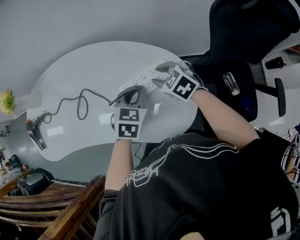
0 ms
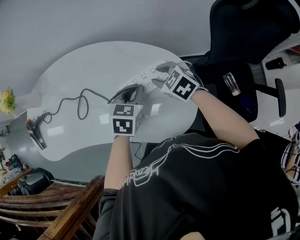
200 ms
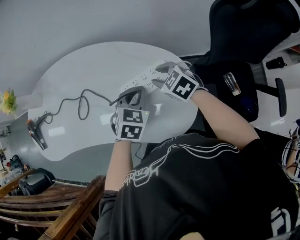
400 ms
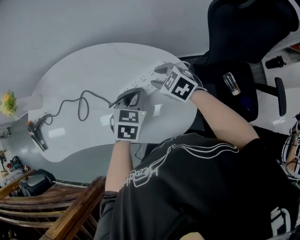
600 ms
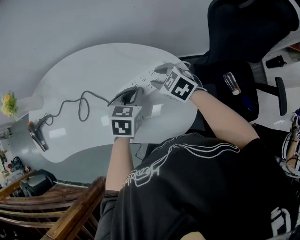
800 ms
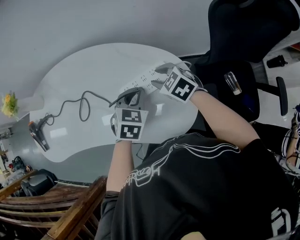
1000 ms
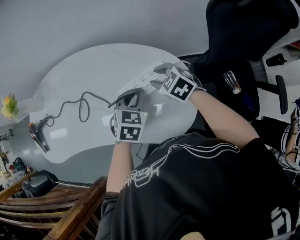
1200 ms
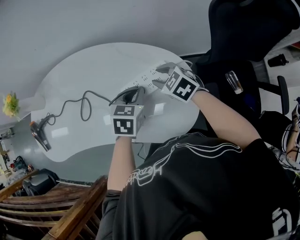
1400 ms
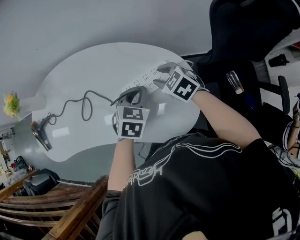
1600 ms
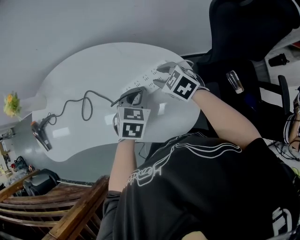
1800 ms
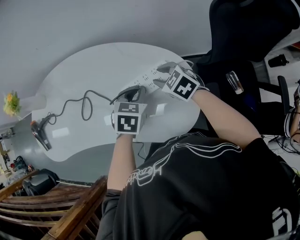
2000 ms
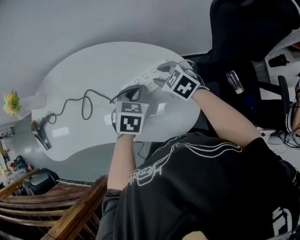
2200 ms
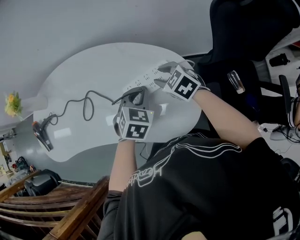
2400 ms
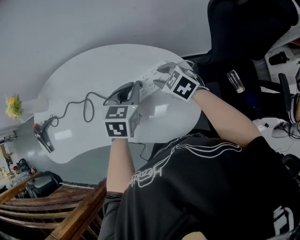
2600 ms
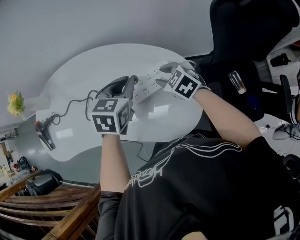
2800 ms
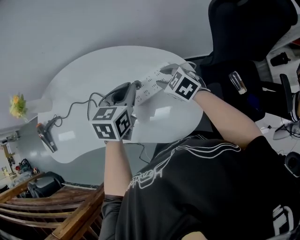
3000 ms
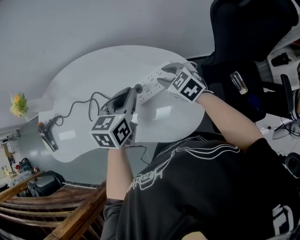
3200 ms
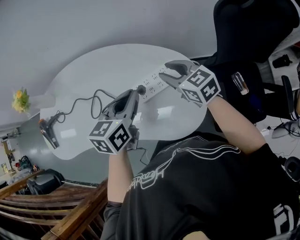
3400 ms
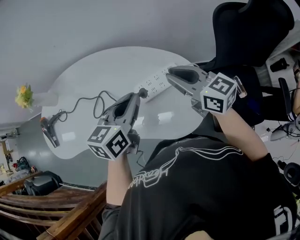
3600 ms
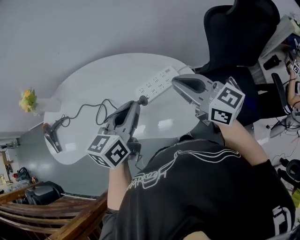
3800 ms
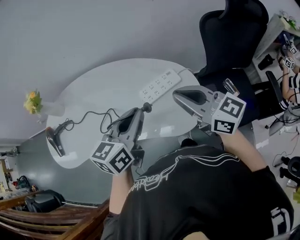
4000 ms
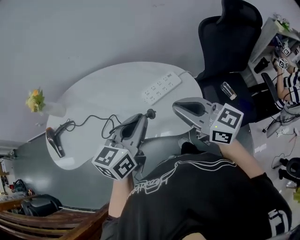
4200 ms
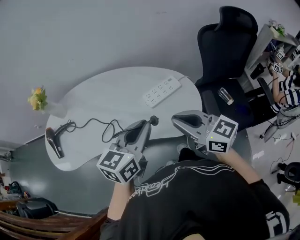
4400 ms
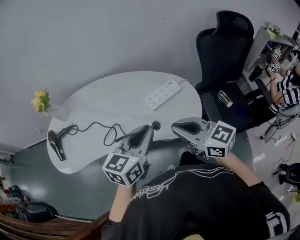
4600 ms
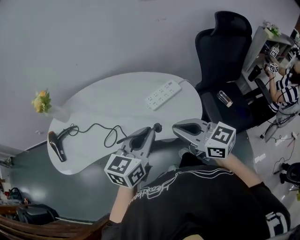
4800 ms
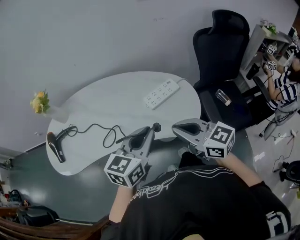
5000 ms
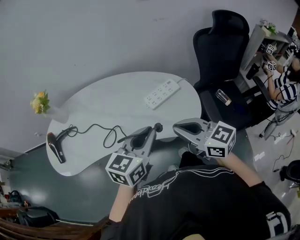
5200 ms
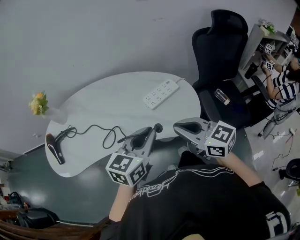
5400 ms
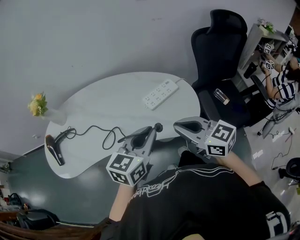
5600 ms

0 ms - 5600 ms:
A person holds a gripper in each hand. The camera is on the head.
0 ms - 1400 ms: The grippers stay close to where they were, moving slightly.
1400 ms - 2800 ms: The left gripper heads upward, covering approximately 5 cm.
2800 ms - 4200 ms: The right gripper goes some 35 cm upward and backward, points its fingers roughly 40 degrees further upward, and closes its fingers, while the left gripper goes roughly 25 cm backward, upward and to the left, and changes its angle by some 30 degrees.
4200 ms - 5600 ms: Both grippers move backward, some 5 cm.

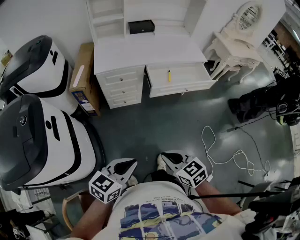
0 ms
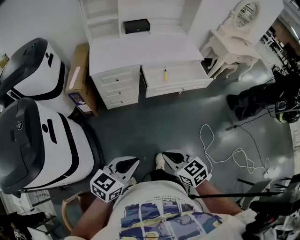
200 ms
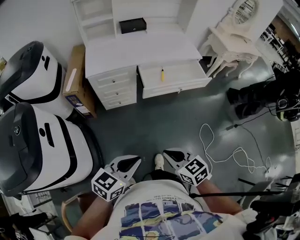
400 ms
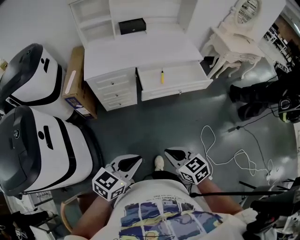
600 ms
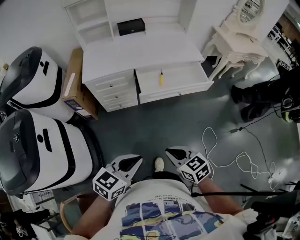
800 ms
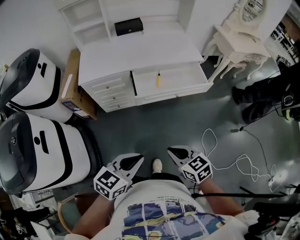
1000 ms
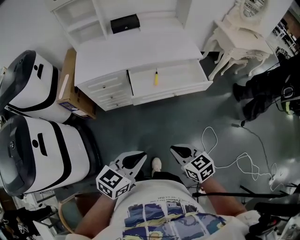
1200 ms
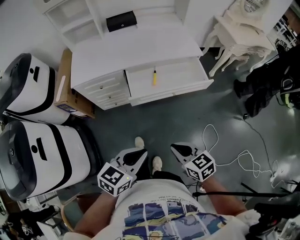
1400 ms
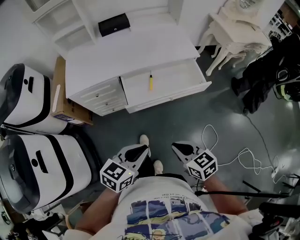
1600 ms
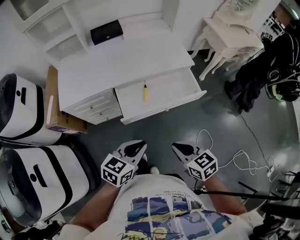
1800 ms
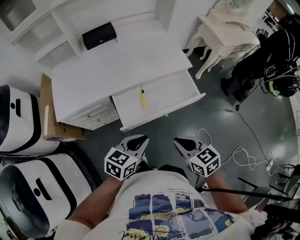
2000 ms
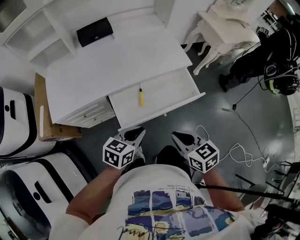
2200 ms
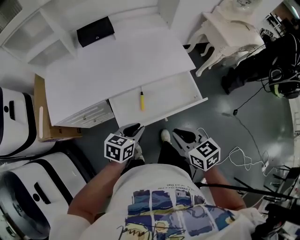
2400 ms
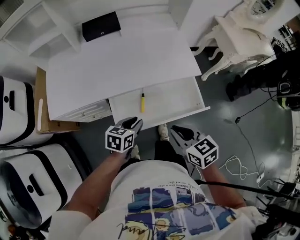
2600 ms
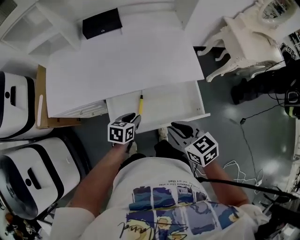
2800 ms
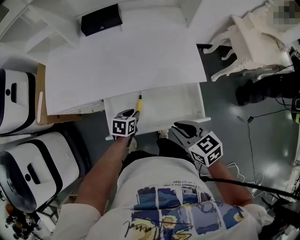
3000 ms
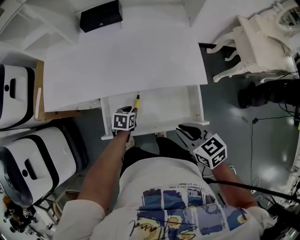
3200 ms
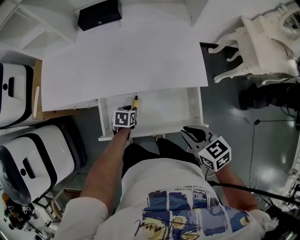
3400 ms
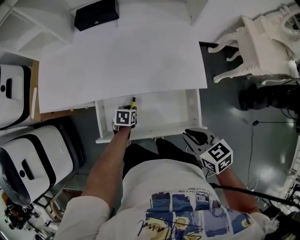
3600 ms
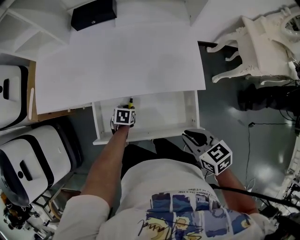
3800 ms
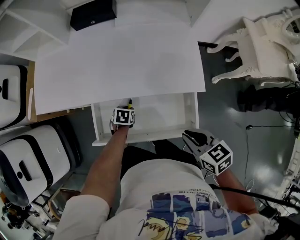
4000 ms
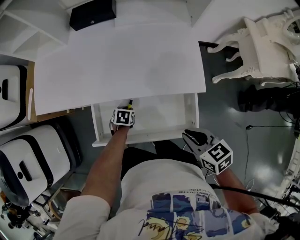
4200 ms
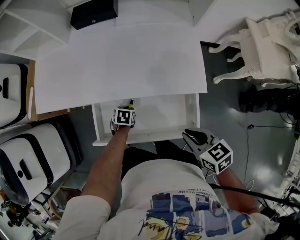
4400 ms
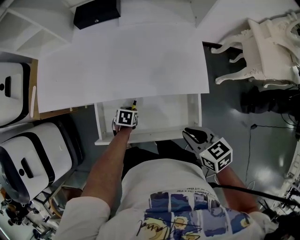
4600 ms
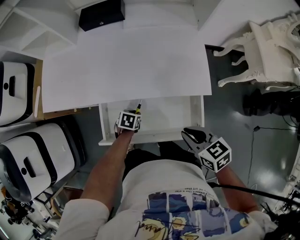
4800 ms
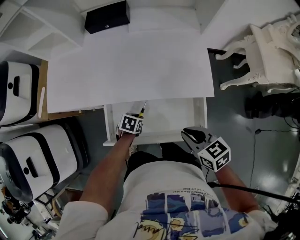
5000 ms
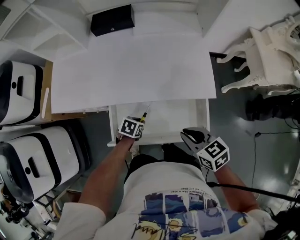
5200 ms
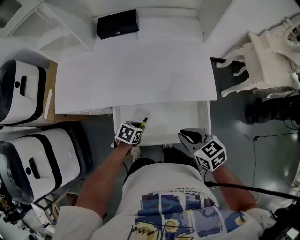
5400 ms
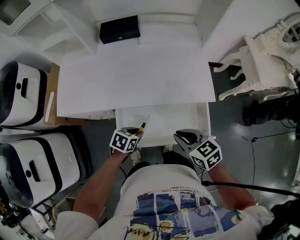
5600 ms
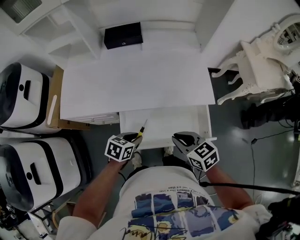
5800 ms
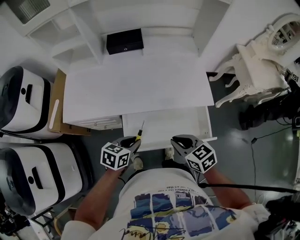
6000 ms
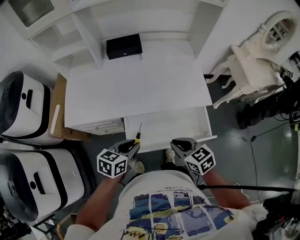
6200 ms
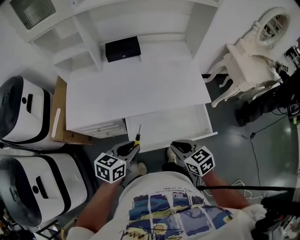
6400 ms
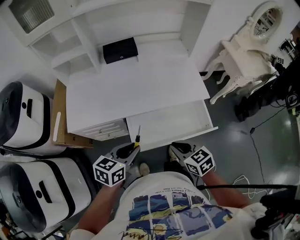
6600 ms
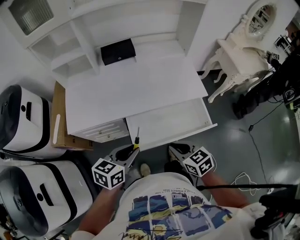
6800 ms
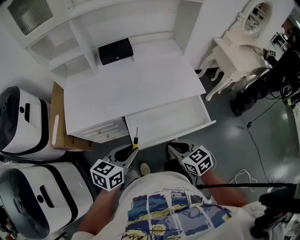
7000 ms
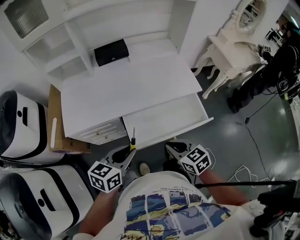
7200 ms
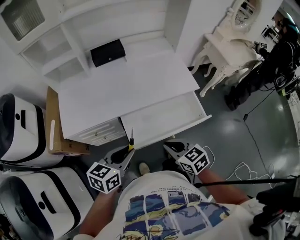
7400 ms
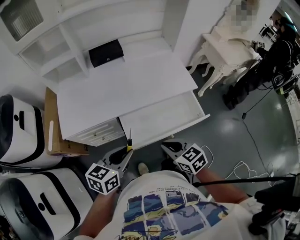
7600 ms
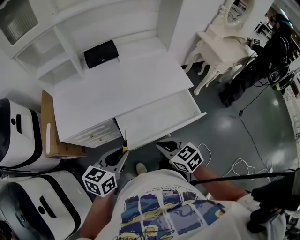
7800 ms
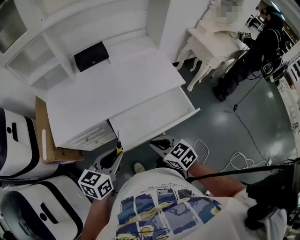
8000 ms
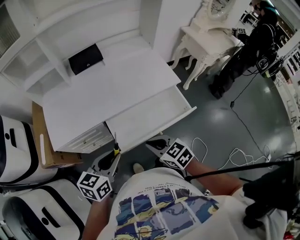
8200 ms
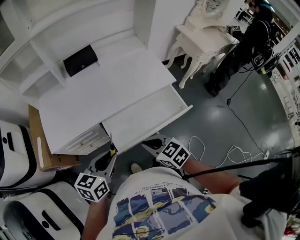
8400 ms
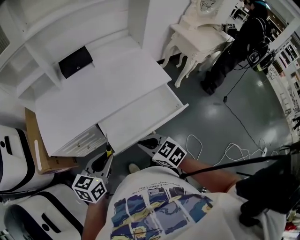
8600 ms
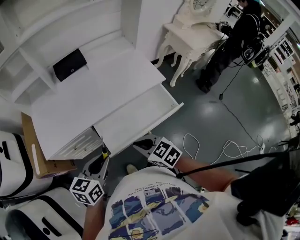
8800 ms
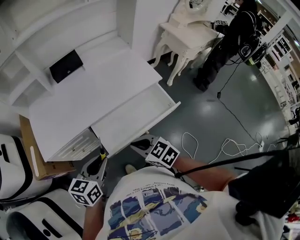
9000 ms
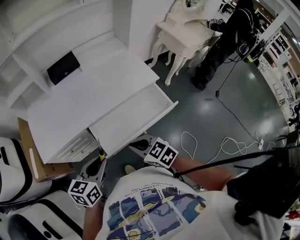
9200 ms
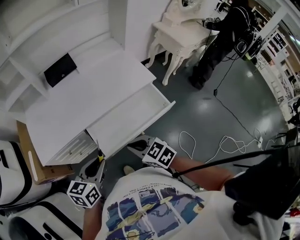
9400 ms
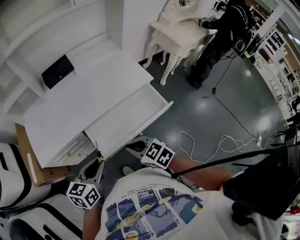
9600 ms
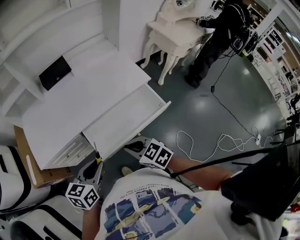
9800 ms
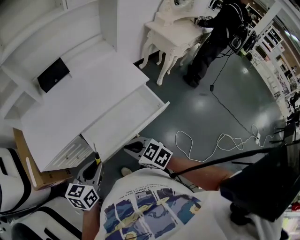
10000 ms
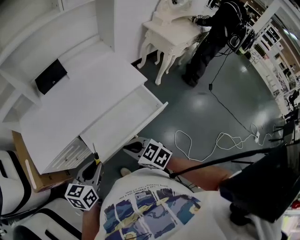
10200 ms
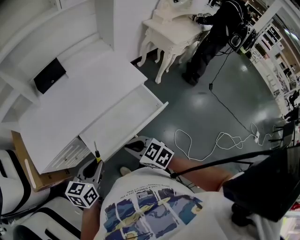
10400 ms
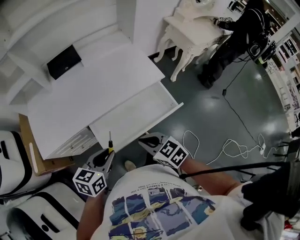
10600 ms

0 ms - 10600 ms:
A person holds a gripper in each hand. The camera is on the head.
0 ms - 1600 ms: Both grippers move forward and to the right, roughly 30 cm.
1600 ms - 3000 ms: The right gripper goes some 30 cm forward. Meanwhile the left gripper is displaced forward and downward by about 40 cm, swivels some 40 degrees, and opens its fingers.
3000 ms - 4600 ms: The left gripper heads downward, covering roughly 10 cm; the right gripper goes approximately 10 cm to the right.
4600 ms - 6000 ms: The left gripper goes about 25 cm upward, and angles its fingers upward, by about 30 degrees; the right gripper shifts by approximately 15 cm.
6000 ms - 7600 ms: The right gripper heads backward and to the left, covering some 10 cm. The left gripper is displaced upward, backward and to the left by roughly 15 cm.
7600 ms - 9000 ms: The grippers move only a little.
9000 ms - 10600 ms: The two grippers go about 10 cm to the right.

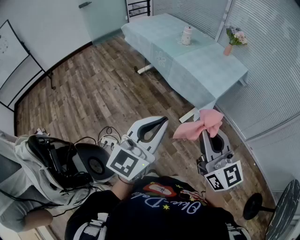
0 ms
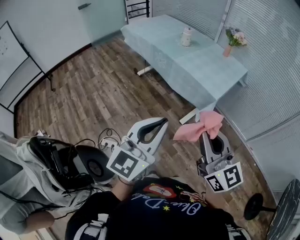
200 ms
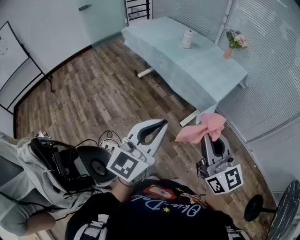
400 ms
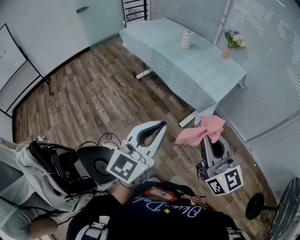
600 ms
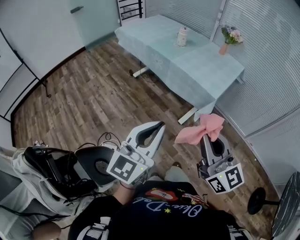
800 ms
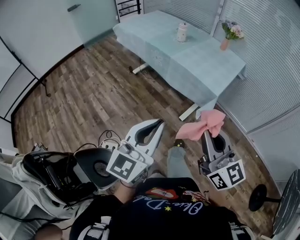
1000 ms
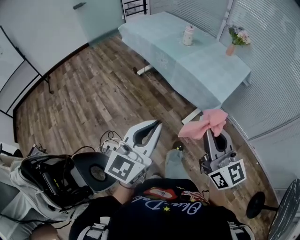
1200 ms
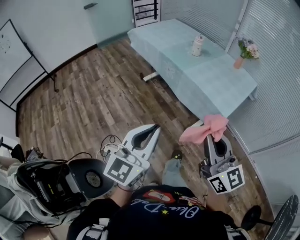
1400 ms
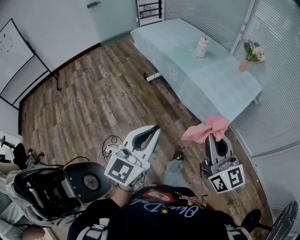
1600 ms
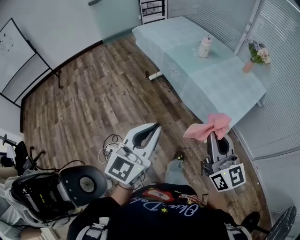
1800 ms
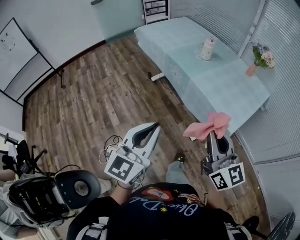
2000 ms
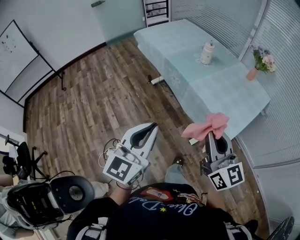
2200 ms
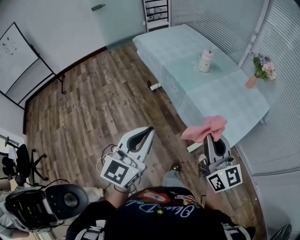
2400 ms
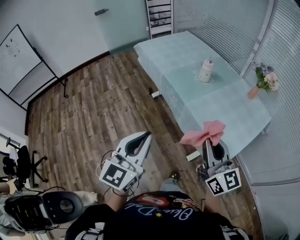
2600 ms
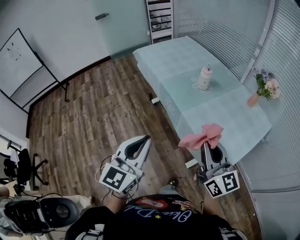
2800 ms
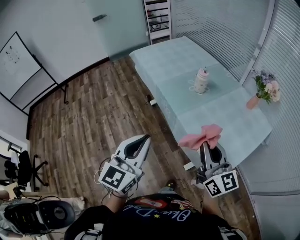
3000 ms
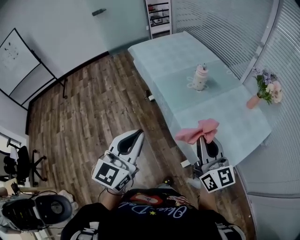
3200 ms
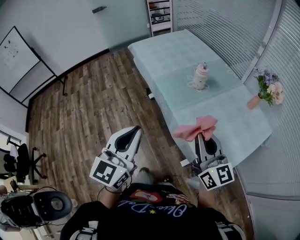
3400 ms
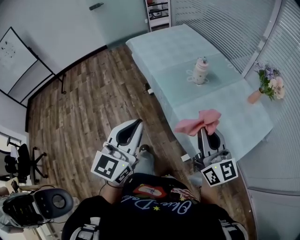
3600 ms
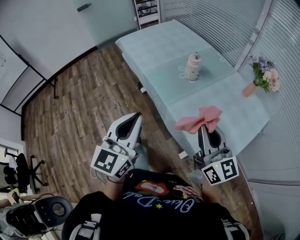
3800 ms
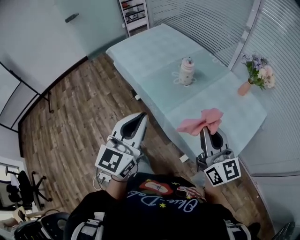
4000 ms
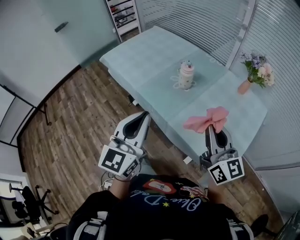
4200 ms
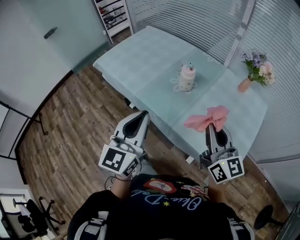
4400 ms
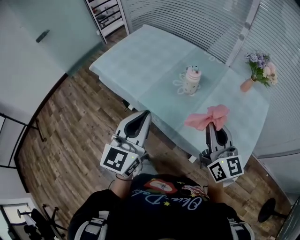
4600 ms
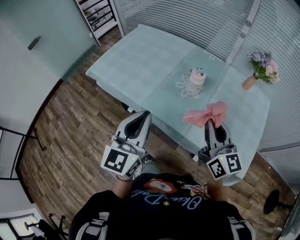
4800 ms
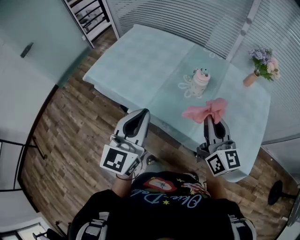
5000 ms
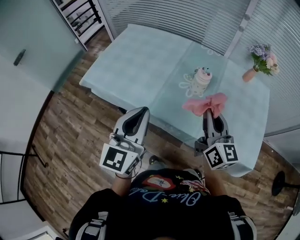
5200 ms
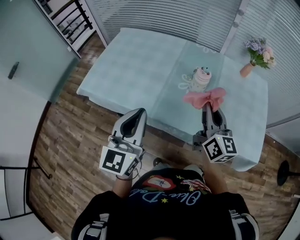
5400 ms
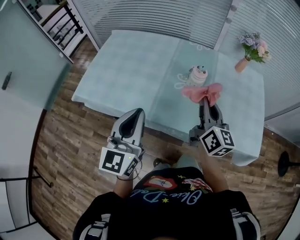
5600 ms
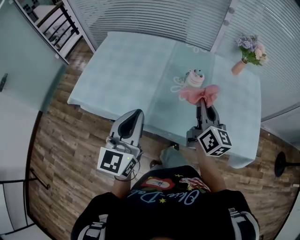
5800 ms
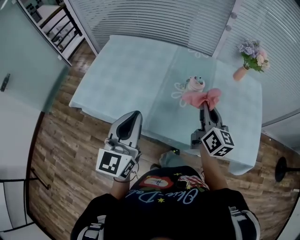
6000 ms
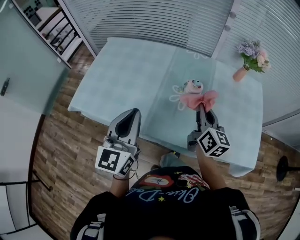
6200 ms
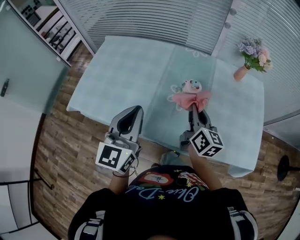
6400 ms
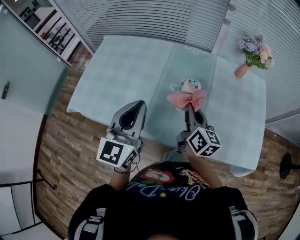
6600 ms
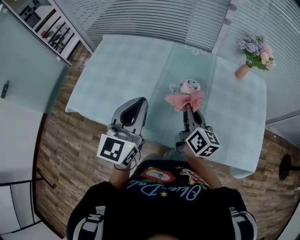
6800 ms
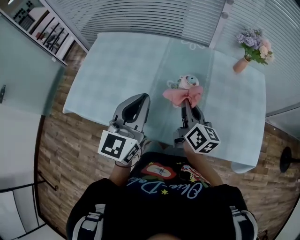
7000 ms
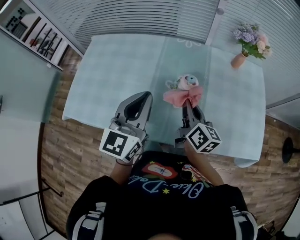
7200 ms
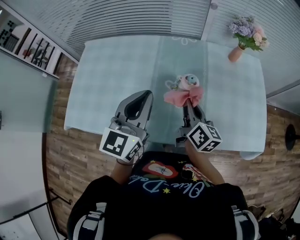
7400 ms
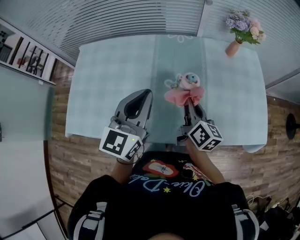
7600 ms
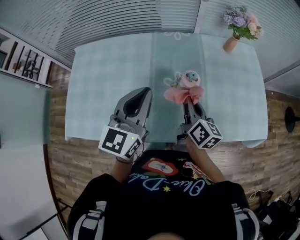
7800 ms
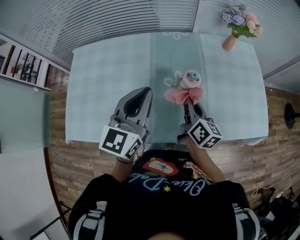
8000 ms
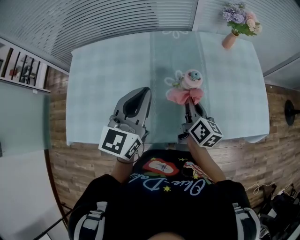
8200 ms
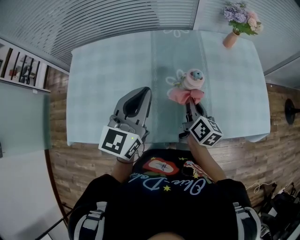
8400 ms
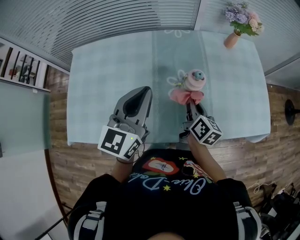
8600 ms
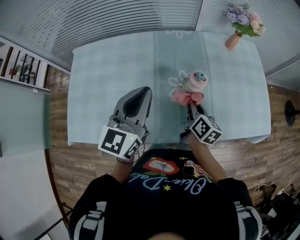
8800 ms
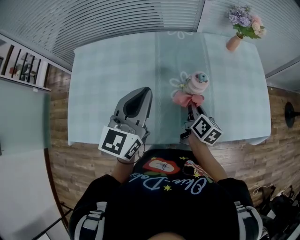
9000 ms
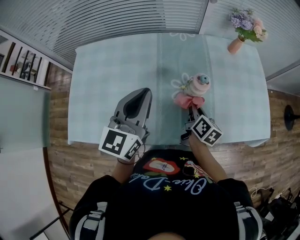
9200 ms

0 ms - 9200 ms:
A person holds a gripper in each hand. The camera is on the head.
0 ms - 1600 ms: The right gripper moves forward, some 10 cm, while the left gripper heads to the left and forward, covering approximately 10 cm.
1600 ms - 3000 ms: The right gripper goes roughly 35 cm forward and to the right, while the left gripper heads forward, covering some 30 cm.
3000 ms - 4600 ms: The left gripper moves roughly 30 cm. Meanwhile the right gripper moves some 20 cm, and turns by about 30 degrees.
4600 ms - 6200 ms: The right gripper goes about 20 cm forward, to the left and downward, and turns by some 30 degrees. Meanwhile the left gripper heads forward and to the left, covering about 20 cm.
6200 ms - 7600 ms: The left gripper heads forward, covering about 15 cm, and swivels roughly 20 degrees. Meanwhile the right gripper shifts about 5 cm downward, and turns by approximately 20 degrees.
7600 ms - 9200 ms: The right gripper moves downward, about 10 cm, while the left gripper changes place by some 5 cm.
